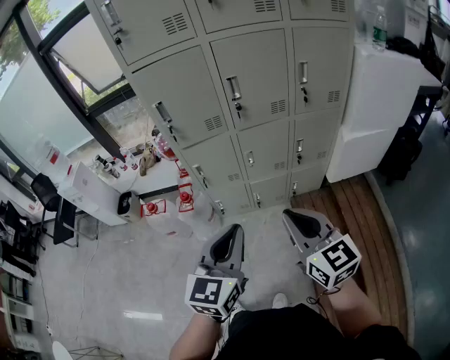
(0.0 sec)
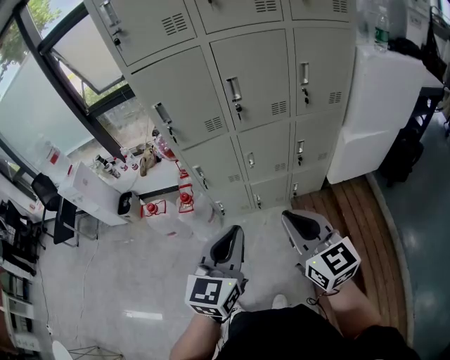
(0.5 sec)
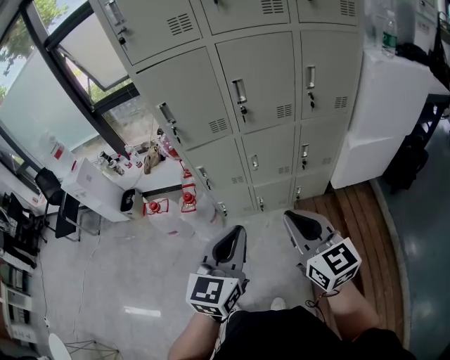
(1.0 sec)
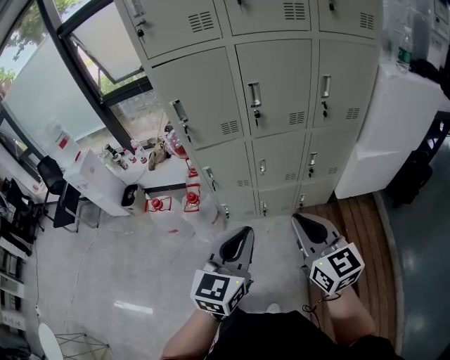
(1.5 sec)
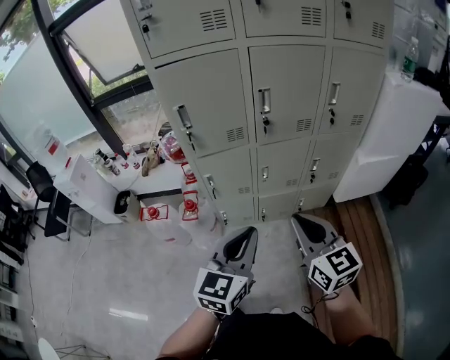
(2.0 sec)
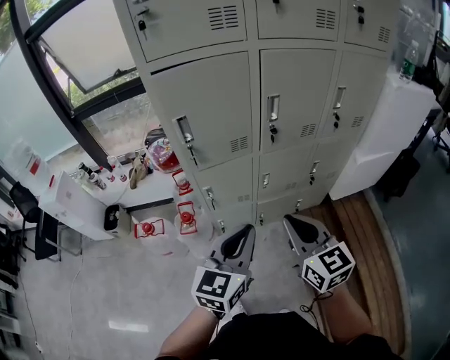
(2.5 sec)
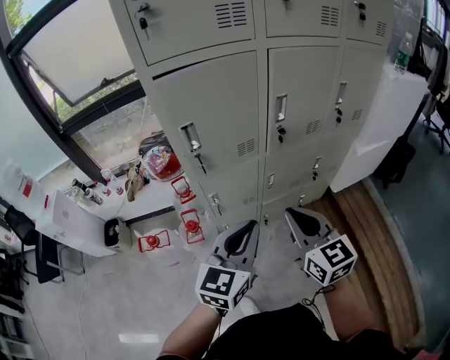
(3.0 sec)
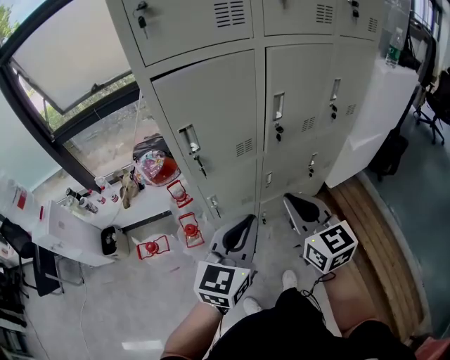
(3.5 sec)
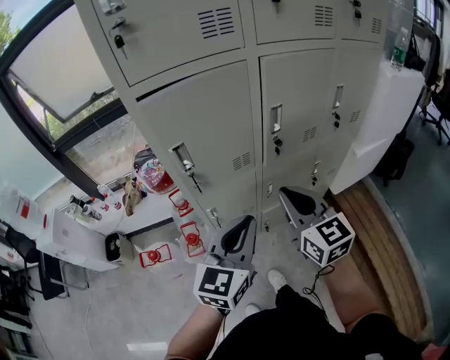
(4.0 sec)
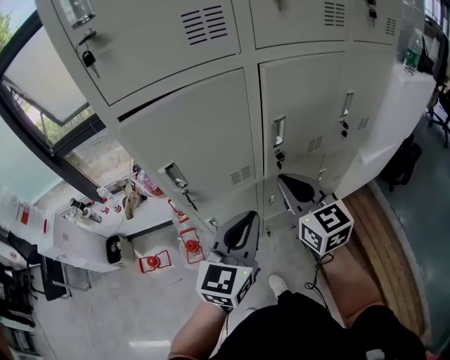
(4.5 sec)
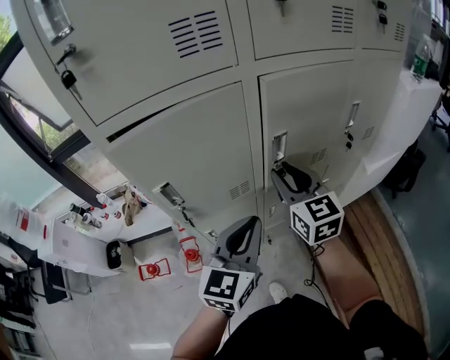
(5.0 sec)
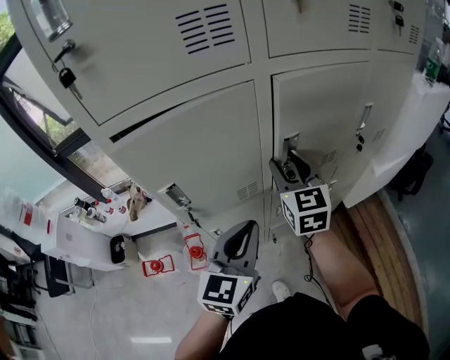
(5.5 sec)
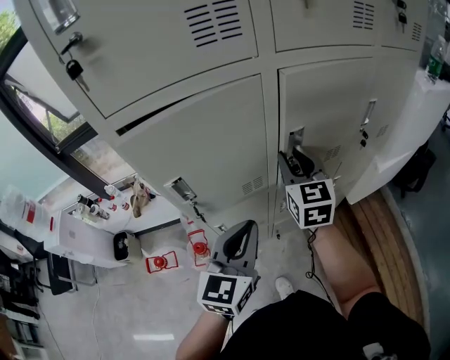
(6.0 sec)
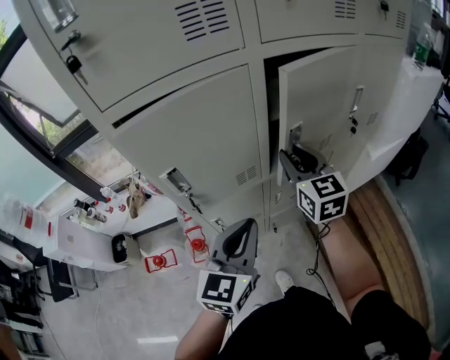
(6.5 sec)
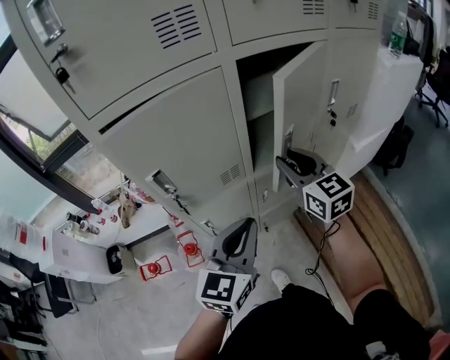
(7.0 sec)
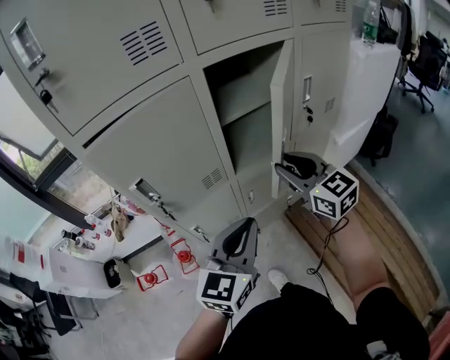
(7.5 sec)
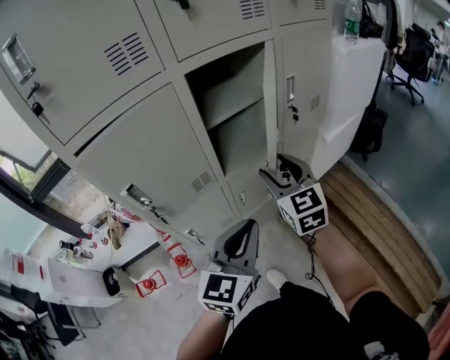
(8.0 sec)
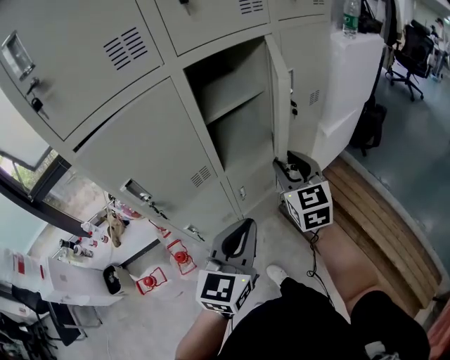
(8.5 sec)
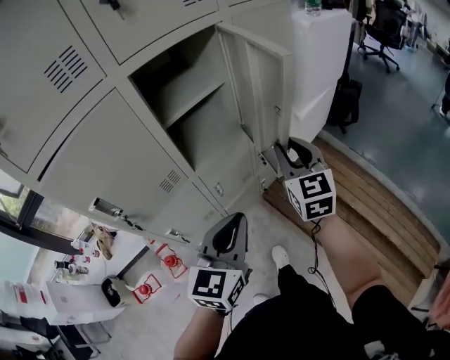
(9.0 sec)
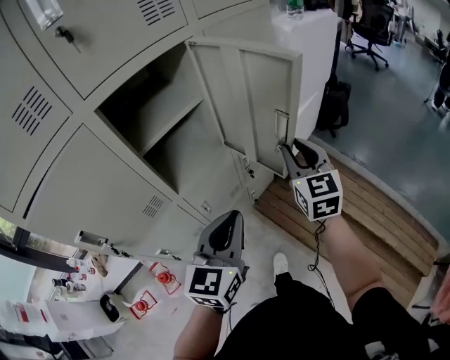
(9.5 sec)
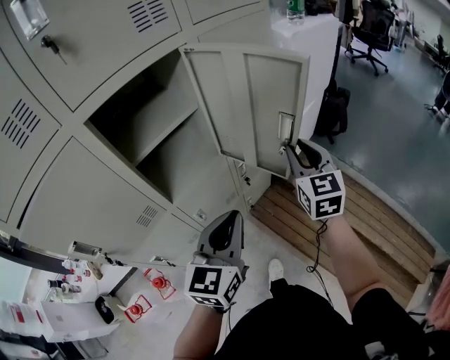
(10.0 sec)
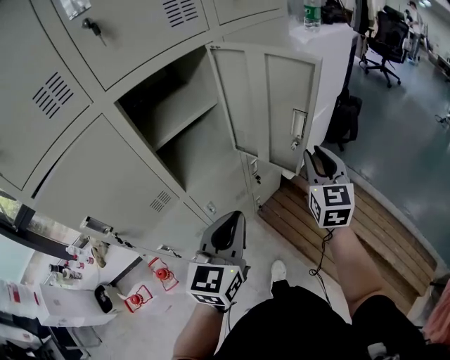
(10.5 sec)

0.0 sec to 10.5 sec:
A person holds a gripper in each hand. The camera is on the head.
0.0 sec to 2.0 sec: Both grippers move forward, about 10 cm.
2.0 sec to 4.0 sec: The two grippers go approximately 20 cm forward and to the left.
4.0 sec to 6.5 sec: The right gripper shifts approximately 20 cm forward, and opens its fingers. The left gripper moves forward, some 10 cm.
6.5 sec to 8.5 sec: The right gripper moves to the right and backward, approximately 15 cm, while the left gripper is displaced to the right by about 10 cm.
8.5 sec to 10.5 sec: The left gripper goes approximately 10 cm forward and to the right. The right gripper shifts roughly 20 cm to the right.

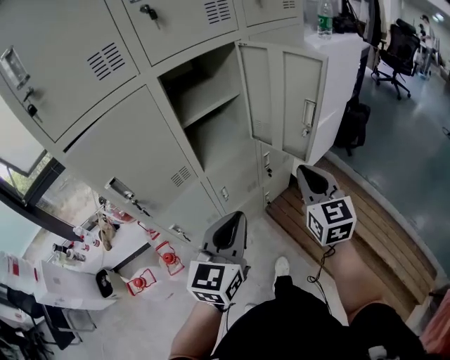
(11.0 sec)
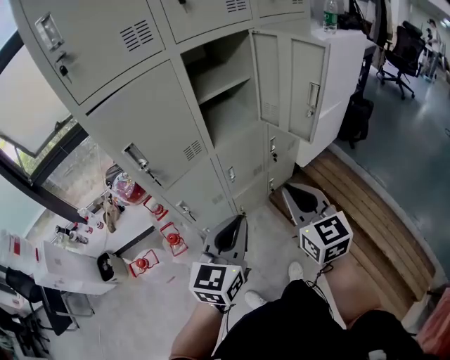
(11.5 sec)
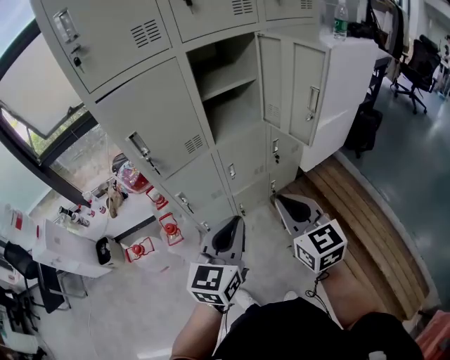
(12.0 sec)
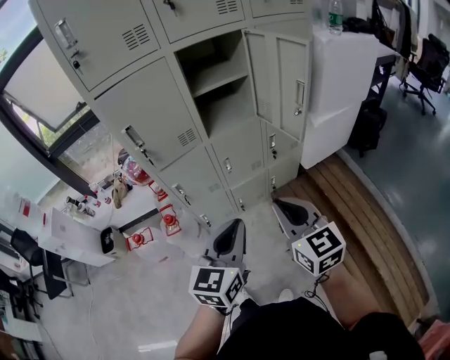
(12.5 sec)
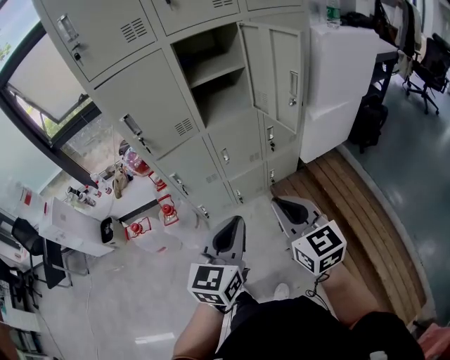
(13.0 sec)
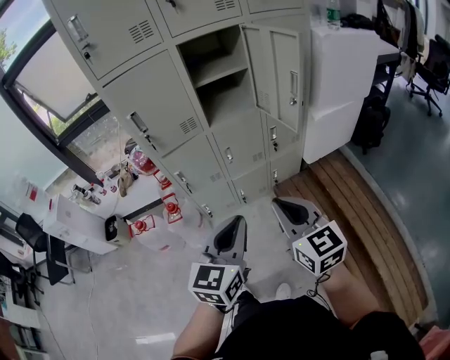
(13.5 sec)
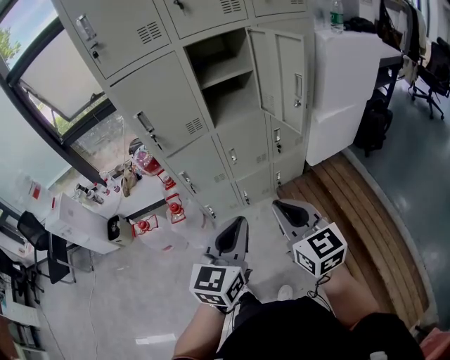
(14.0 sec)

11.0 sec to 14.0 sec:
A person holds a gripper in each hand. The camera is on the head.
11.0 sec to 12.5 sec: Both grippers travel together backward, roughly 15 cm. The right gripper swivels some 30 degrees.
12.5 sec to 14.0 sec: Both grippers move backward, about 5 cm.

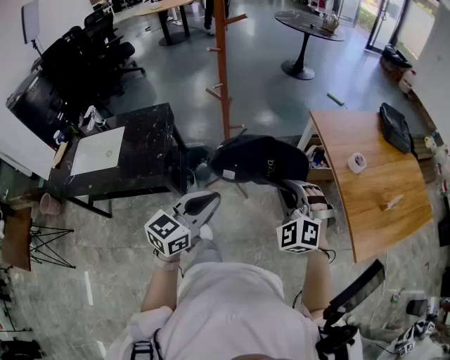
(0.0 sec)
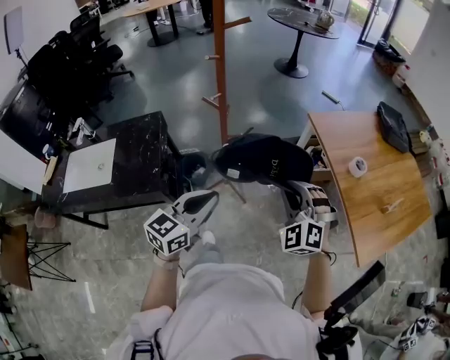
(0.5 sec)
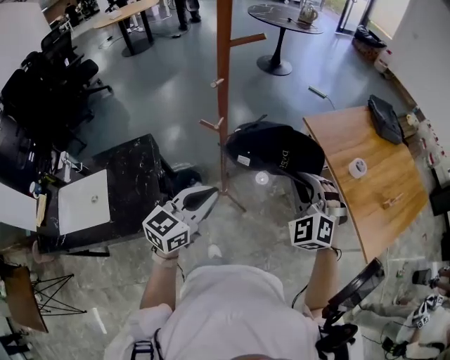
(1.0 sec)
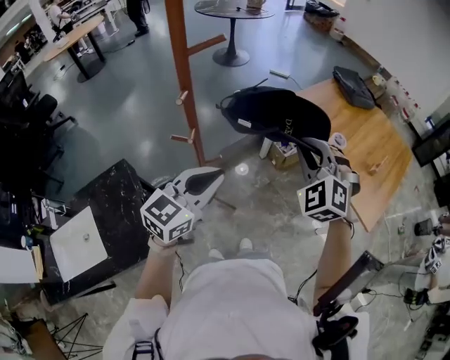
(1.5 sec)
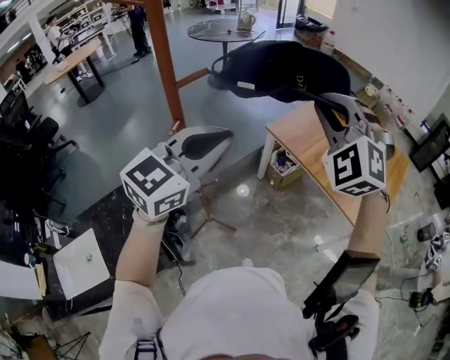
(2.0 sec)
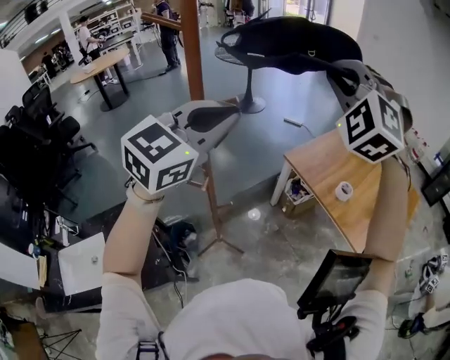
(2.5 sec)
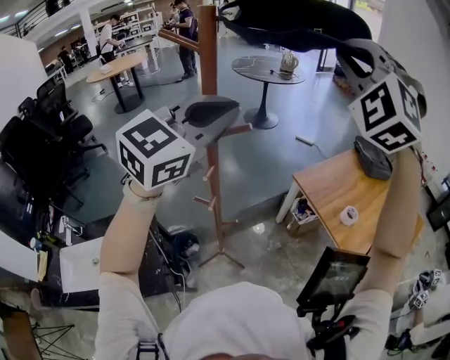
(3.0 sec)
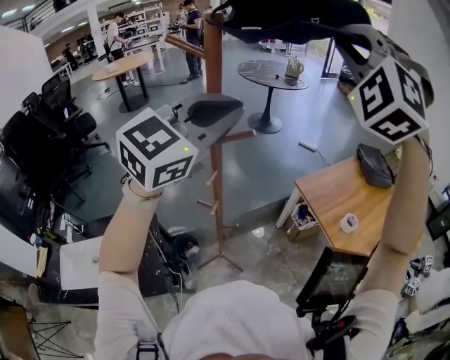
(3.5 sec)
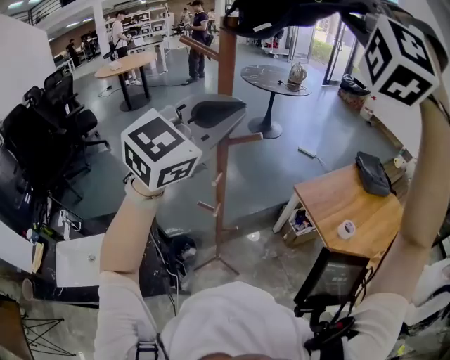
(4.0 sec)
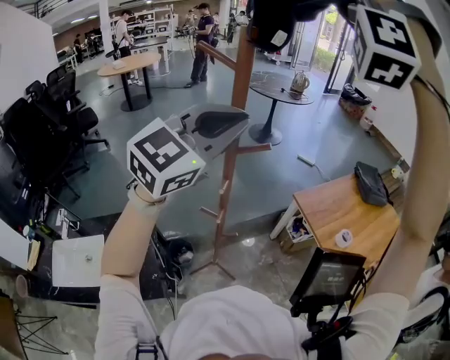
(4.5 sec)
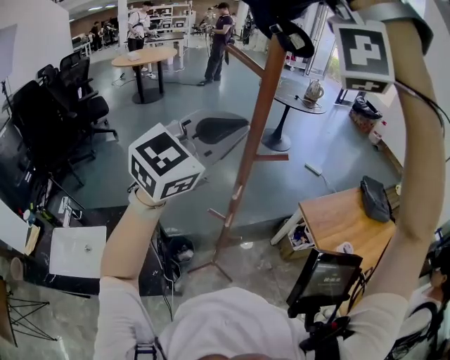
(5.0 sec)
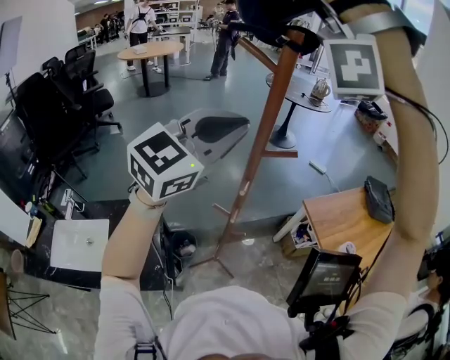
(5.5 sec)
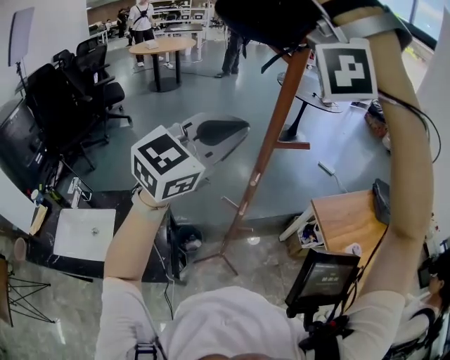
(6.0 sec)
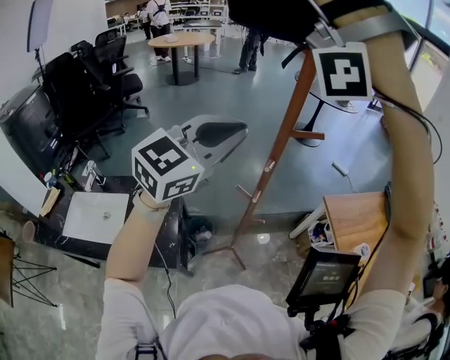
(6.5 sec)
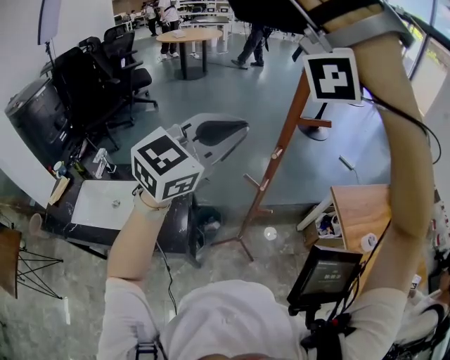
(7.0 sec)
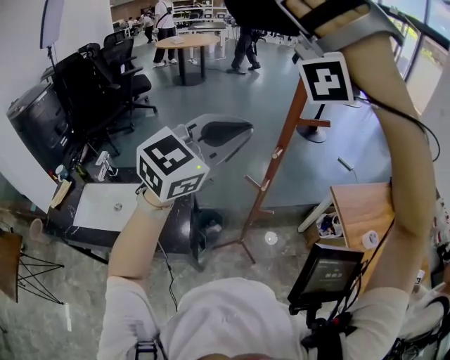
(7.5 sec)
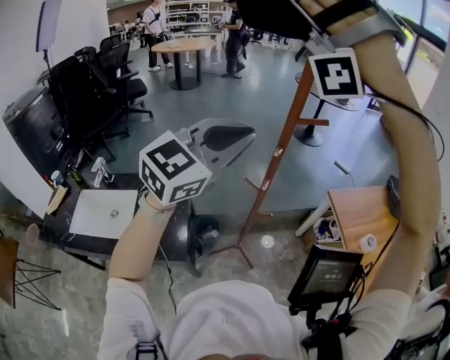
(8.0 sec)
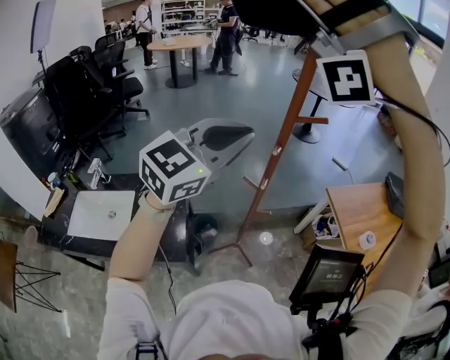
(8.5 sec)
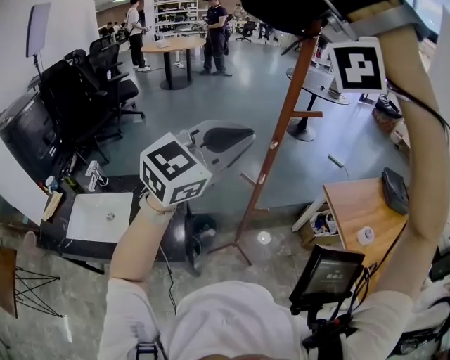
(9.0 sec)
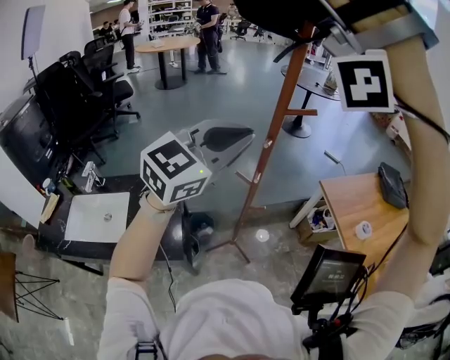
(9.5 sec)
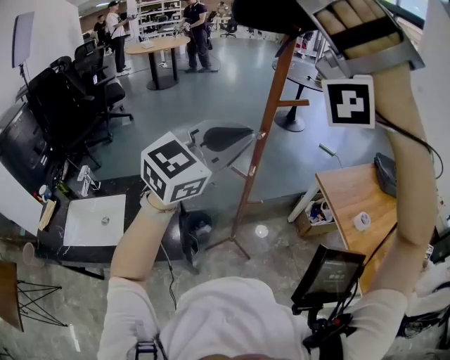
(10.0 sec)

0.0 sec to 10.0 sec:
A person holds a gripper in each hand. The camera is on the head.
0.0 sec to 2.0 sec: The left gripper ends up some 40 cm from where it was, and turns by roughly 40 degrees.
2.0 sec to 4.0 sec: The left gripper heads upward, covering about 20 cm, and rotates approximately 20 degrees.
4.0 sec to 6.0 sec: The left gripper changes place by some 15 cm.
6.0 sec to 8.0 sec: The left gripper changes place by approximately 15 cm.

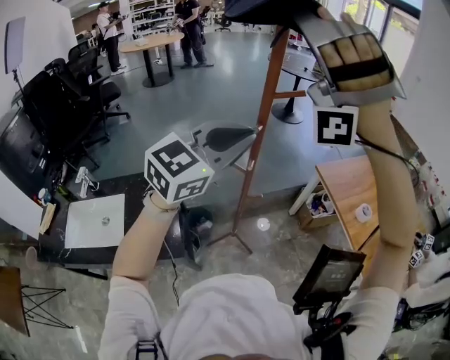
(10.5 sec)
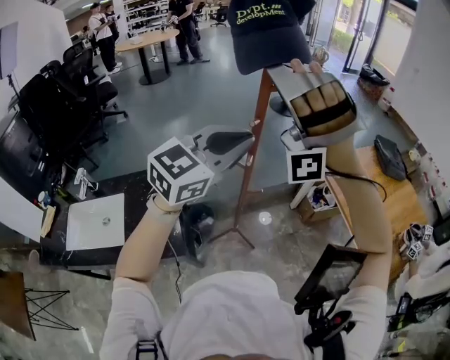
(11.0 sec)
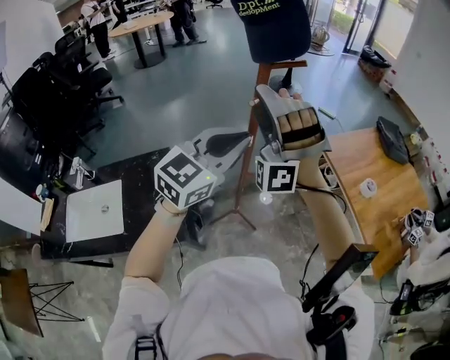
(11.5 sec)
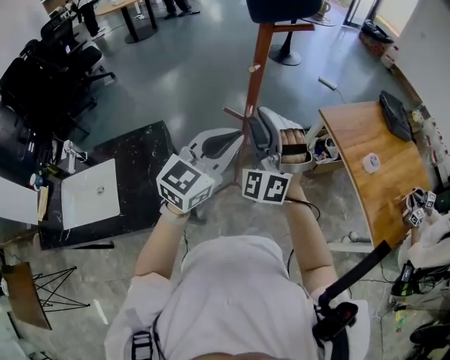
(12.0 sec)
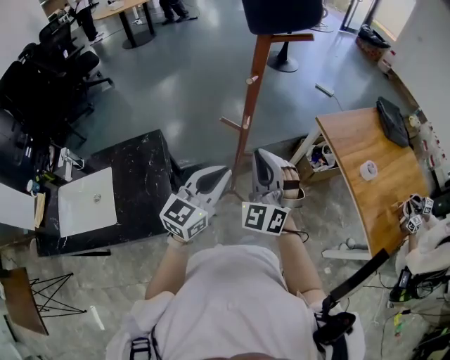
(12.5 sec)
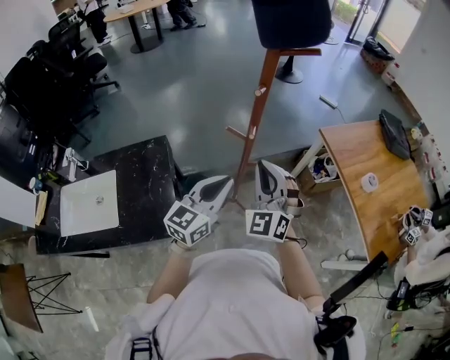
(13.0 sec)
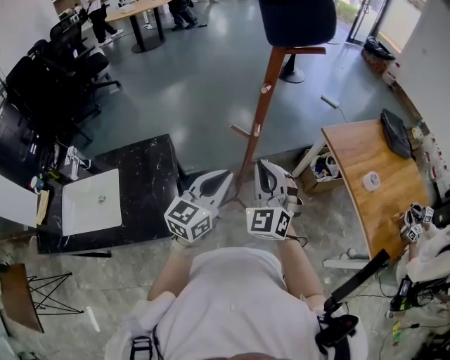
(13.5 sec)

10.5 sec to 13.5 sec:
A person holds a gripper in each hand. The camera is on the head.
10.5 sec to 12.0 sec: The left gripper heads downward, covering about 20 cm.
12.0 sec to 13.5 sec: The left gripper travels downward by some 10 cm.
